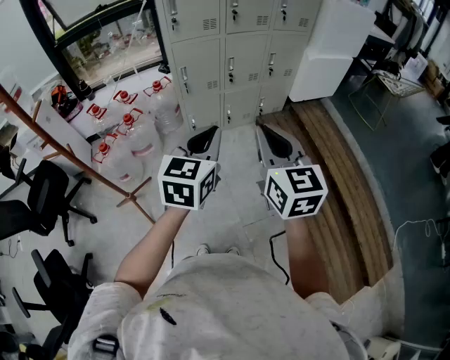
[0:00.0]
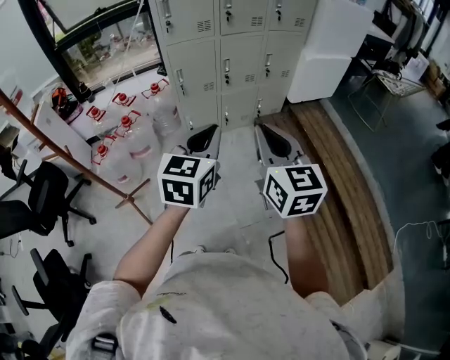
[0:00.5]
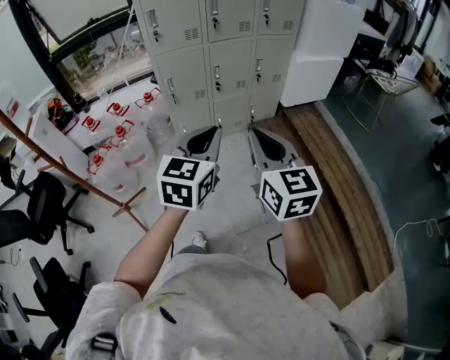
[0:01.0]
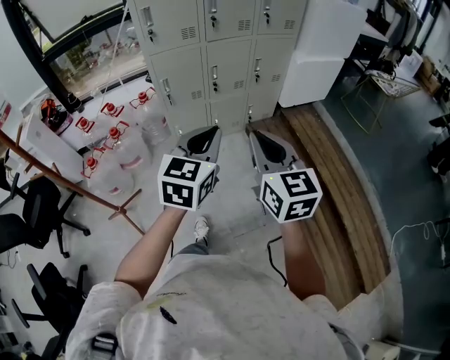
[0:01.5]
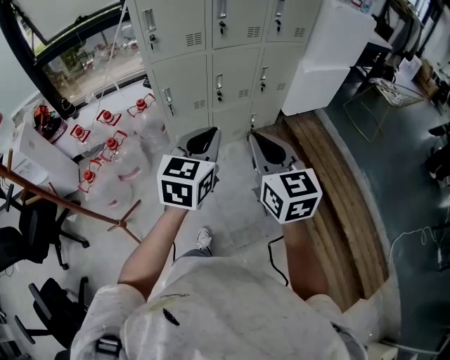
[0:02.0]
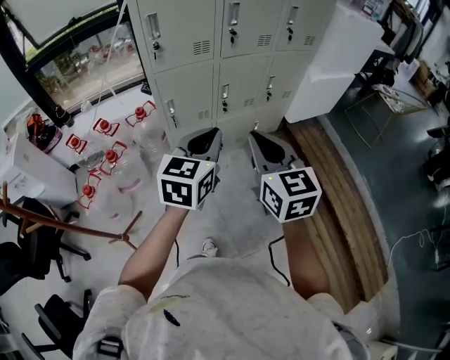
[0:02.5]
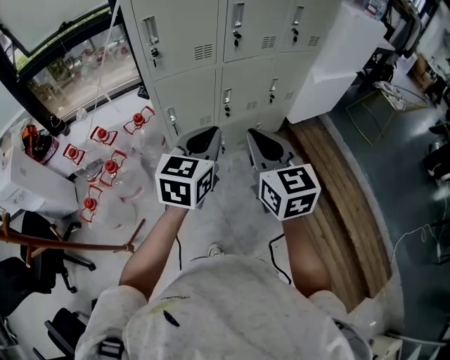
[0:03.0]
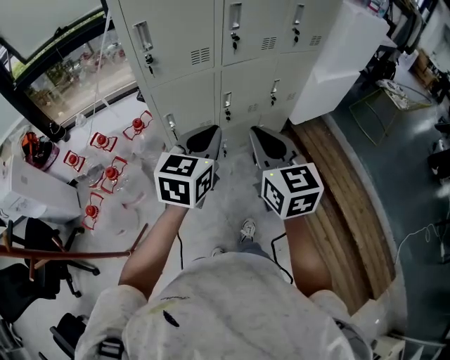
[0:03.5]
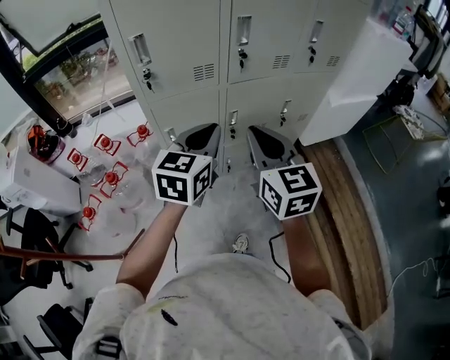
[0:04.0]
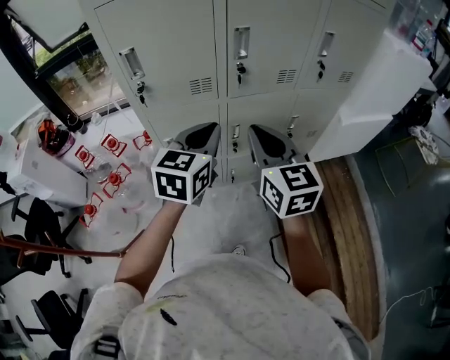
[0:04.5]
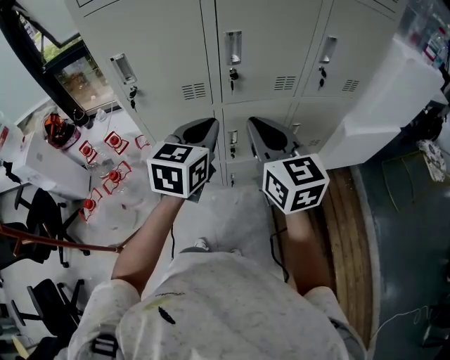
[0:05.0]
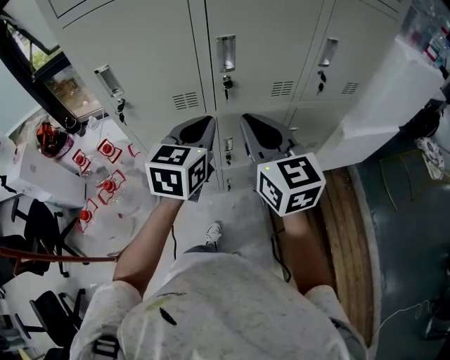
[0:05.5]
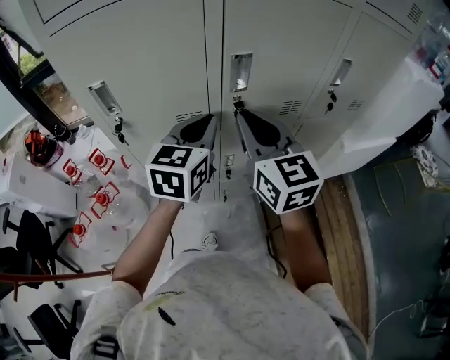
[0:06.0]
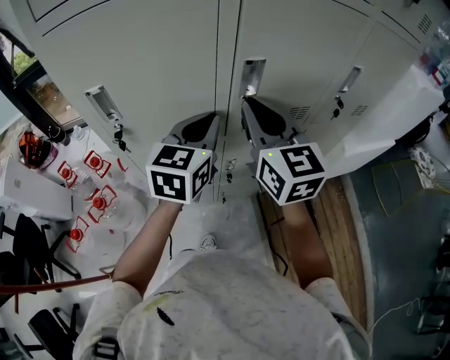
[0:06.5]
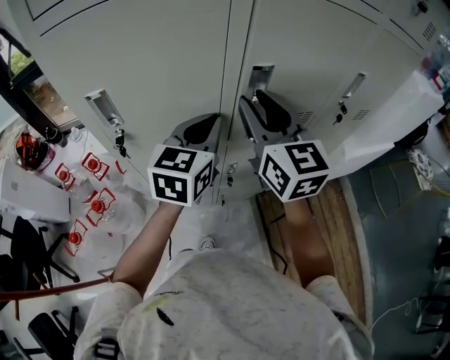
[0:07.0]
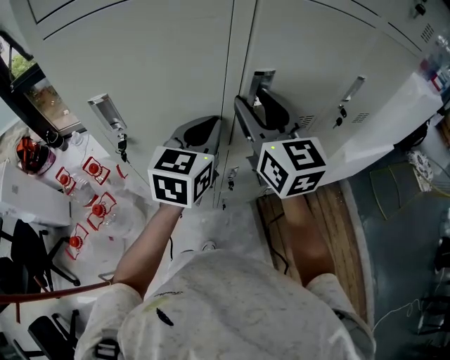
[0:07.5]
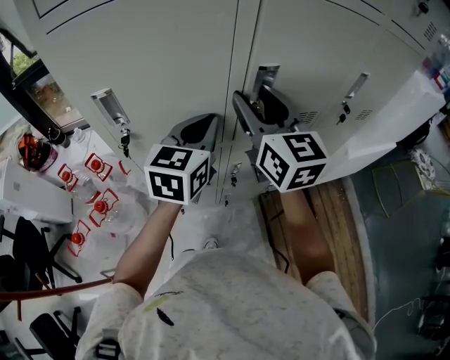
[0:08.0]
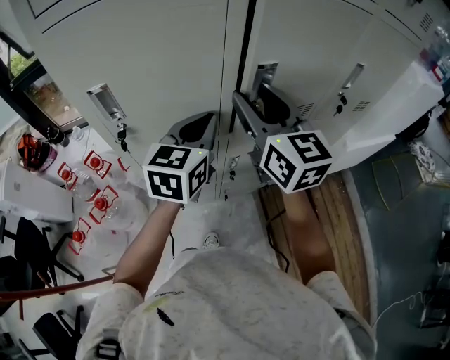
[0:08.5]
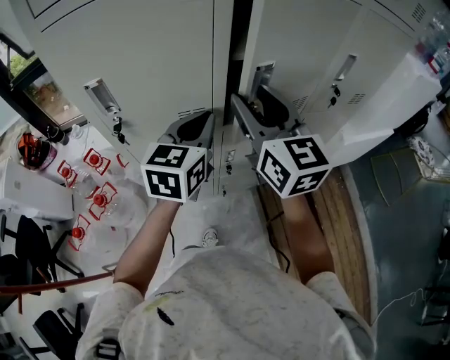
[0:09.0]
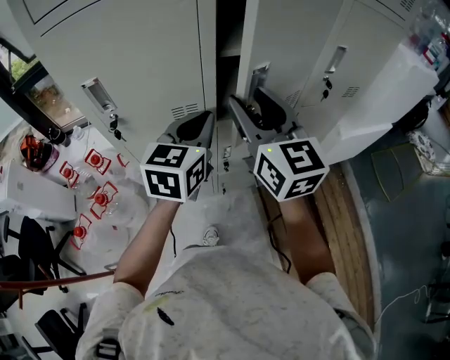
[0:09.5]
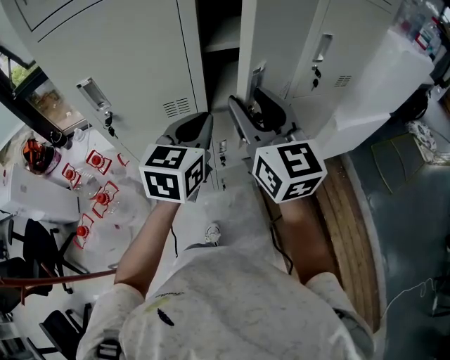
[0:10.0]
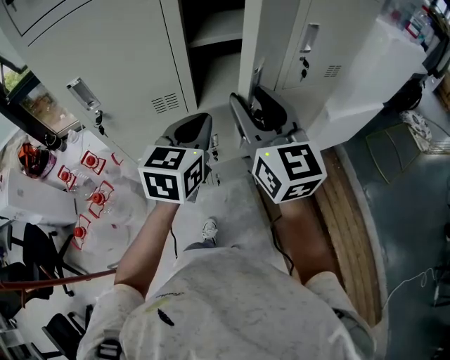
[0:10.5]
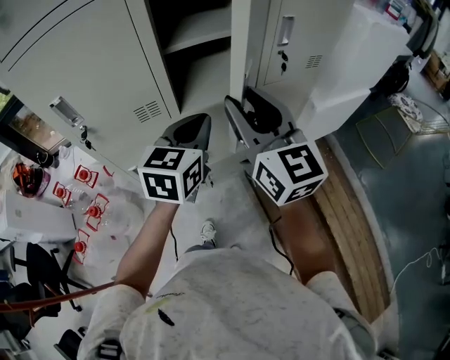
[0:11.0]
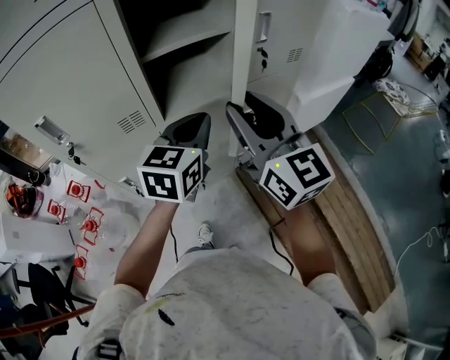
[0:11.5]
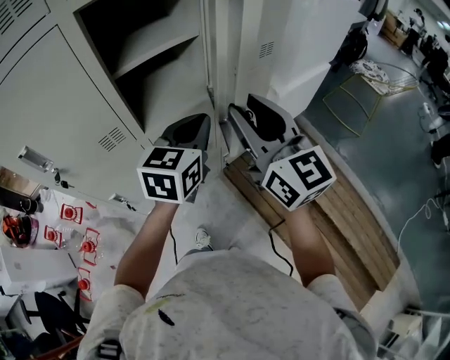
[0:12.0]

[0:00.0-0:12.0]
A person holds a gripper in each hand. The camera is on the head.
0:00.0 to 0:02.0: The grippers both shift forward by approximately 15 cm.
0:02.0 to 0:04.0: Both grippers move forward, some 30 cm.
0:04.0 to 0:06.0: Both grippers travel together forward, roughly 20 cm.
0:06.0 to 0:08.0: The right gripper is displaced forward by roughly 10 cm, and opens up; the left gripper changes place by about 5 cm.
0:08.0 to 0:10.0: The two grippers go about 10 cm backward and to the right.
0:10.0 to 0:12.0: Both grippers travel together to the right, approximately 15 cm. The left gripper changes its angle by about 20 degrees.

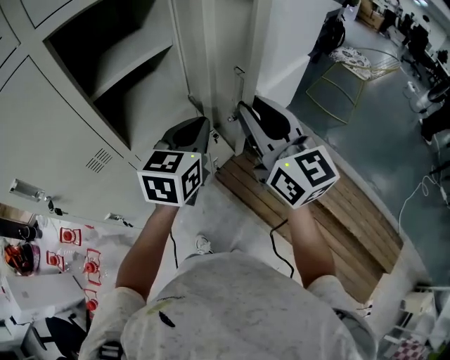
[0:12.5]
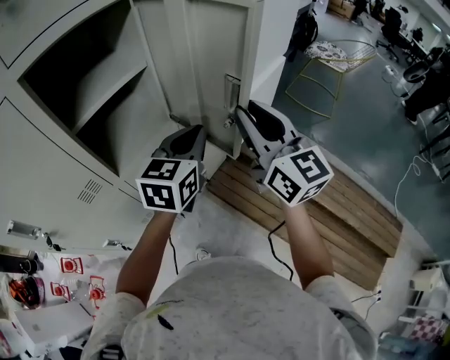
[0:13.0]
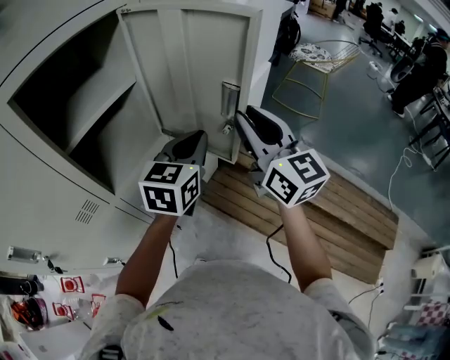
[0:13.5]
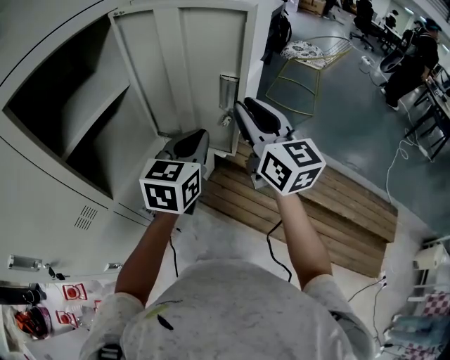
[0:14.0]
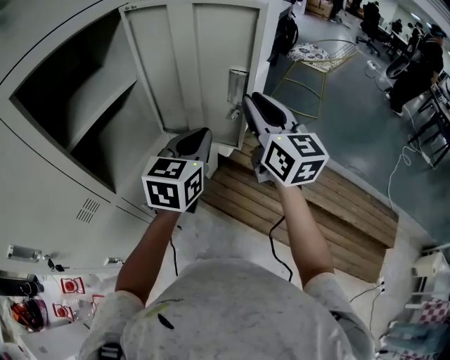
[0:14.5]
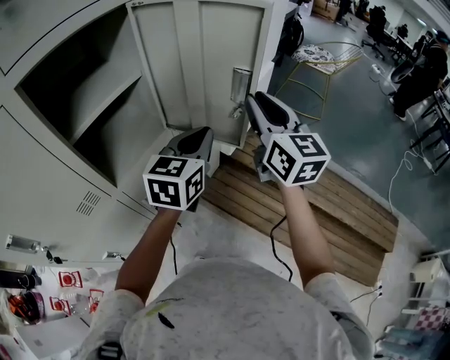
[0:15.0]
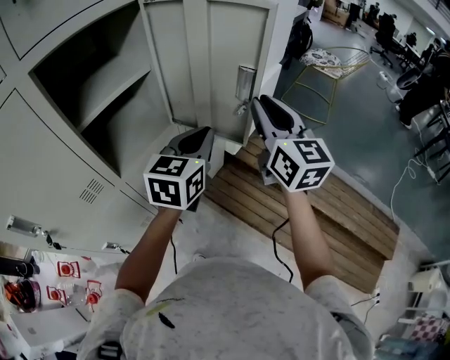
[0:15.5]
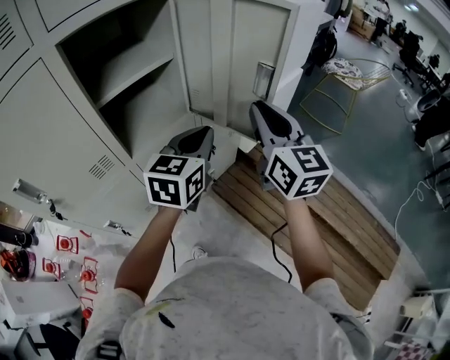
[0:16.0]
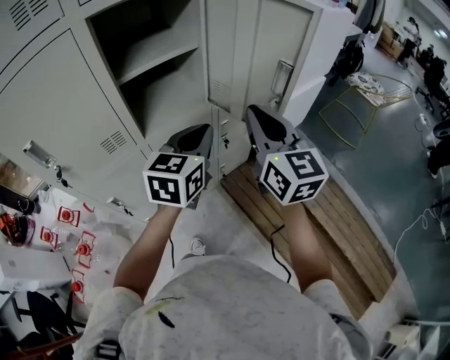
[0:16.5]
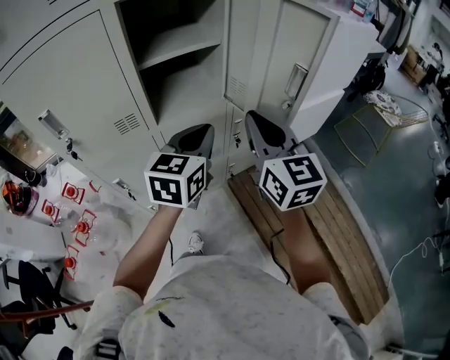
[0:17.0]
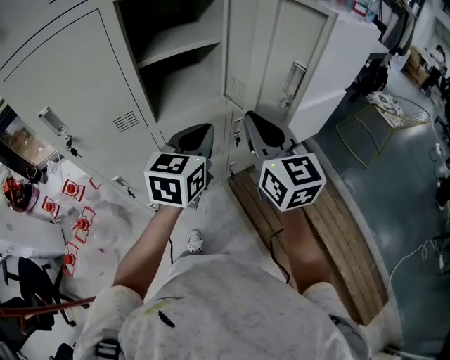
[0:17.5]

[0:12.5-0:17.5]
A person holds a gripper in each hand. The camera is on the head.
0:12.5 to 0:15.0: The left gripper travels to the right by some 5 cm. The right gripper travels forward and to the right by approximately 10 cm, and rotates approximately 20 degrees.
0:15.0 to 0:17.5: The left gripper ends up approximately 15 cm from where it was, and swivels some 30 degrees, while the right gripper changes place by roughly 15 cm, and changes its angle by some 30 degrees.

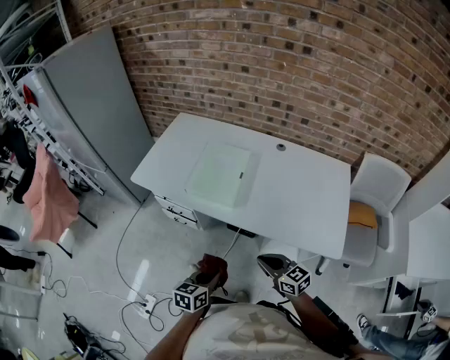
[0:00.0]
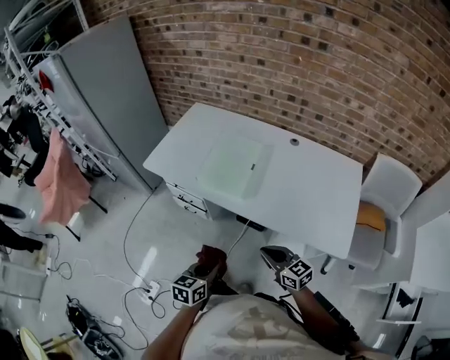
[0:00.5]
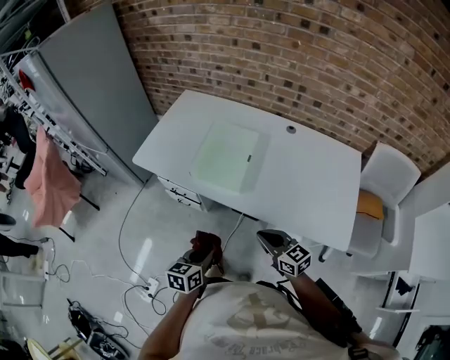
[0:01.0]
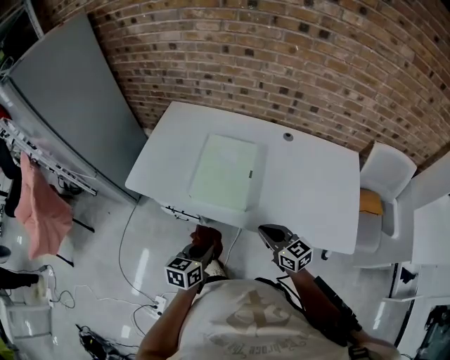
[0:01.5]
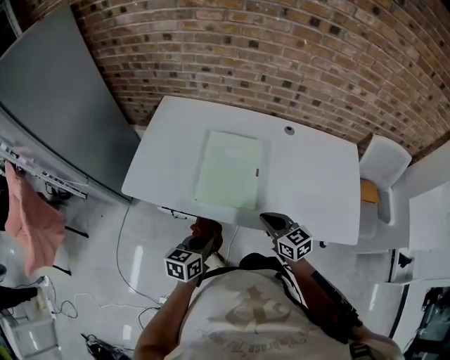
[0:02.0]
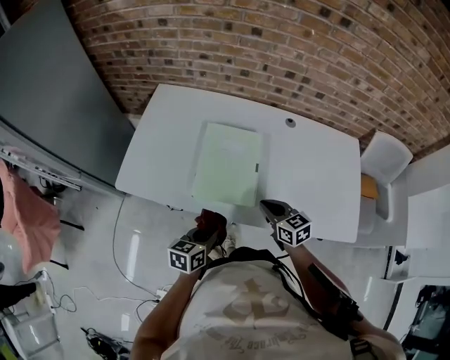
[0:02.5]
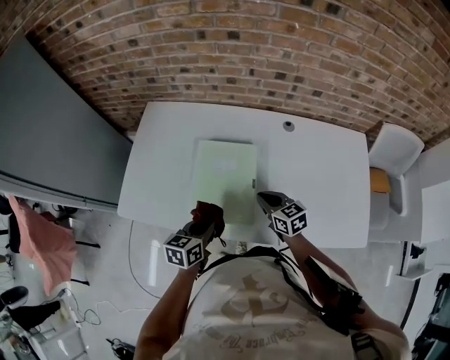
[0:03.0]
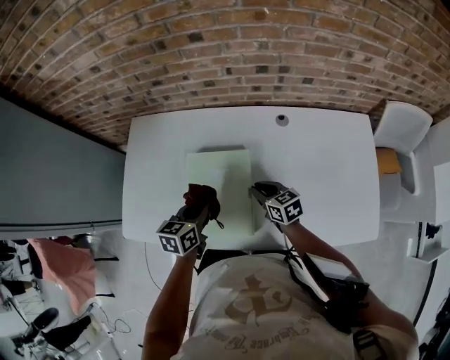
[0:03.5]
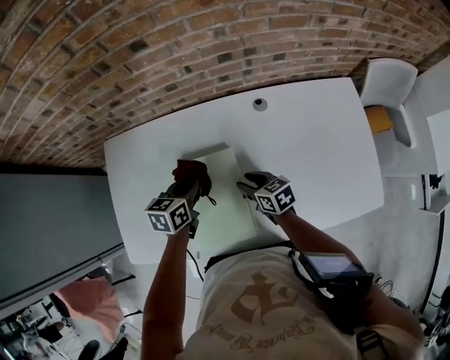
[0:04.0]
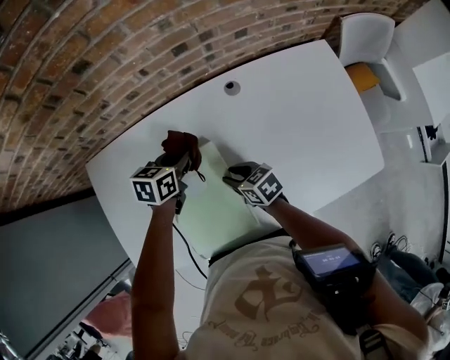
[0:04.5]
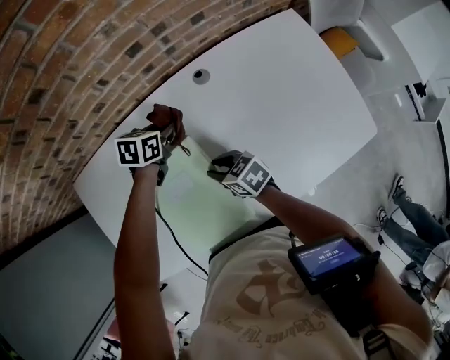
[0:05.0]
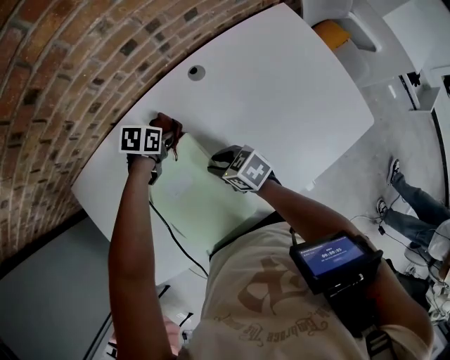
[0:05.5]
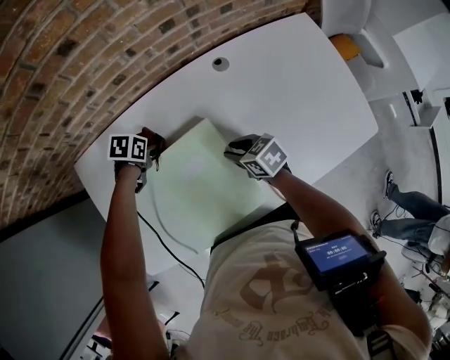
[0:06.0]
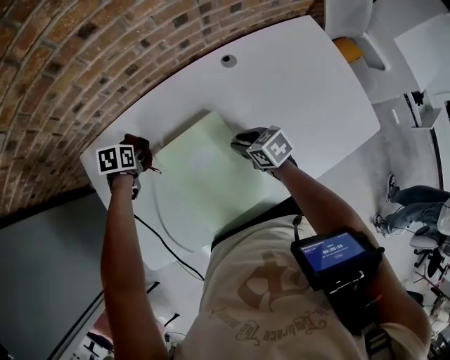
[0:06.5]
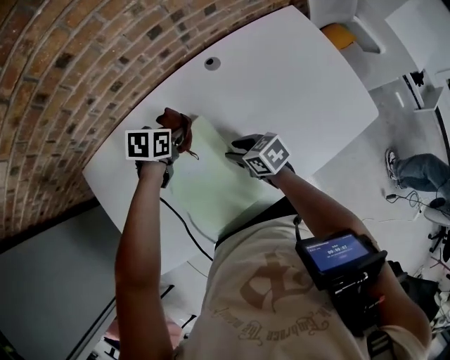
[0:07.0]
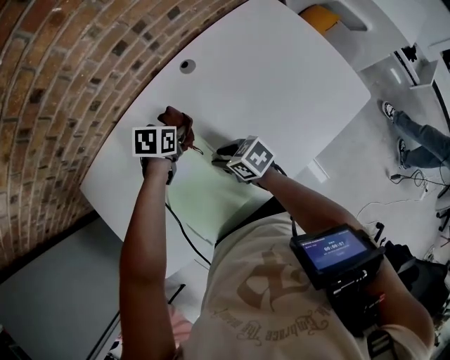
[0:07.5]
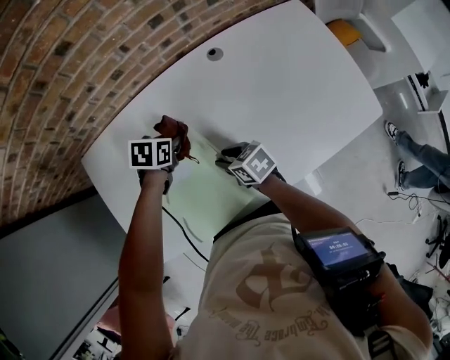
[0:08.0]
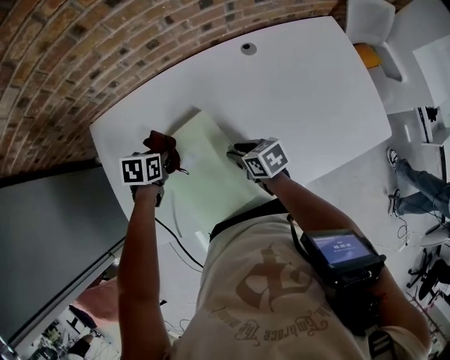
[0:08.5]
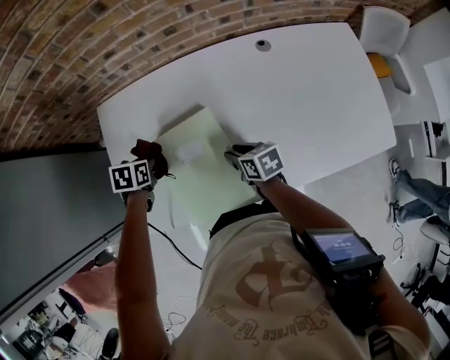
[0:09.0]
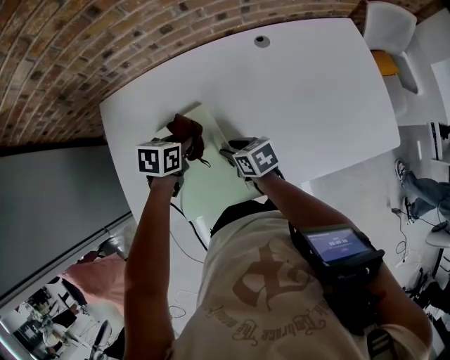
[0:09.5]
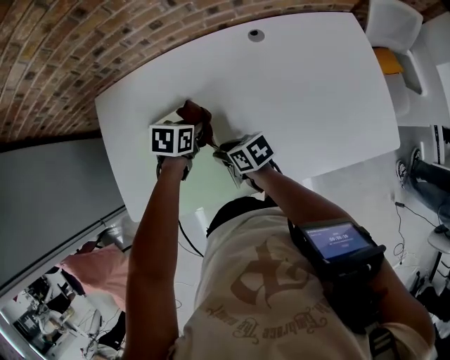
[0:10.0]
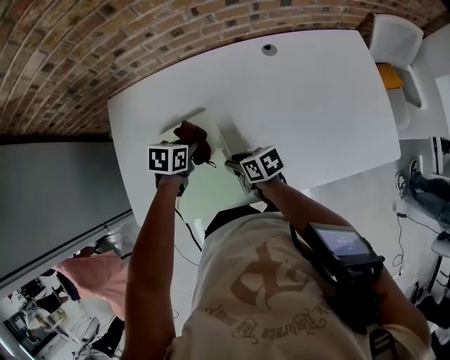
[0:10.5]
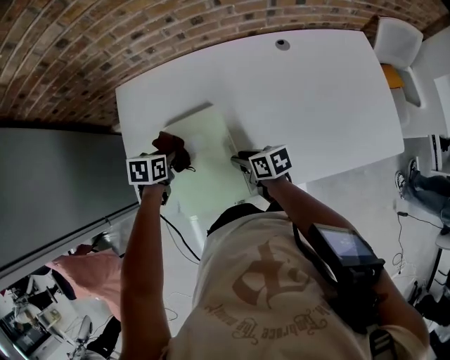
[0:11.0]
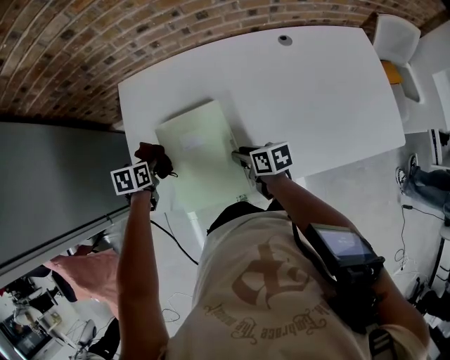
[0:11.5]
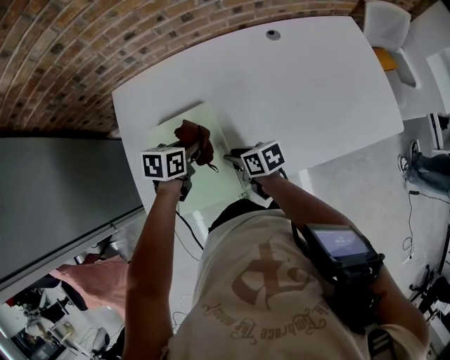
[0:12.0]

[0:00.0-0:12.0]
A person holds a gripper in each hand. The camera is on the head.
0:00.0 to 0:02.0: The right gripper heads forward, covering approximately 20 cm. The left gripper shifts about 25 cm forward and to the left.
0:02.0 to 0:04.0: The right gripper moves forward, about 25 cm, changes its angle by approximately 30 degrees, and opens. The left gripper shifts approximately 35 cm forward.
0:04.0 to 0:06.0: The left gripper shifts approximately 15 cm downward, and angles its fingers downward, by about 30 degrees.
0:06.0 to 0:08.0: The right gripper shifts by about 5 cm.
0:08.0 to 0:10.0: The right gripper ends up roughly 5 cm from where it was.
0:10.0 to 0:12.0: The right gripper moves roughly 10 cm.
